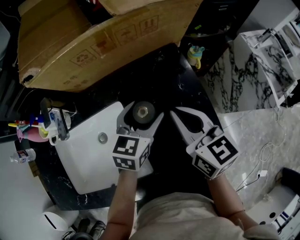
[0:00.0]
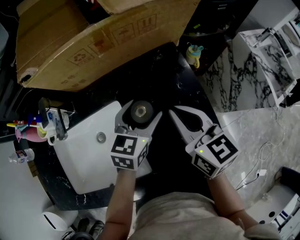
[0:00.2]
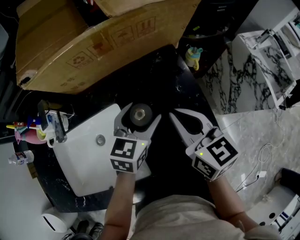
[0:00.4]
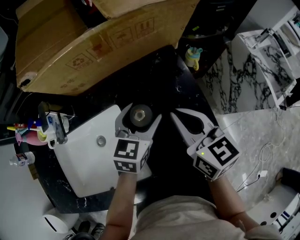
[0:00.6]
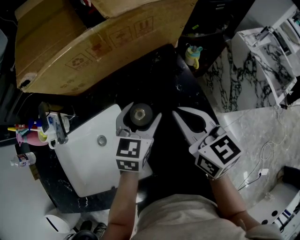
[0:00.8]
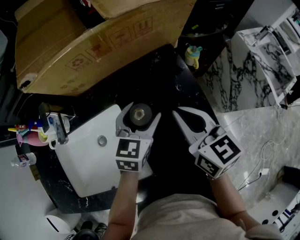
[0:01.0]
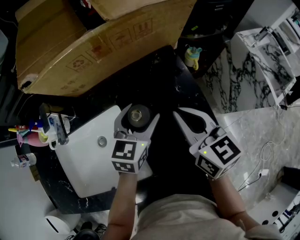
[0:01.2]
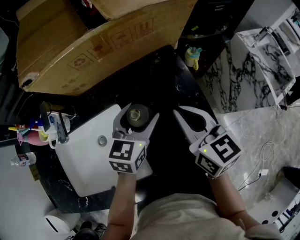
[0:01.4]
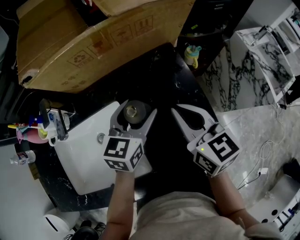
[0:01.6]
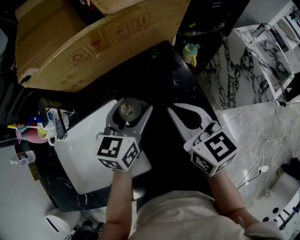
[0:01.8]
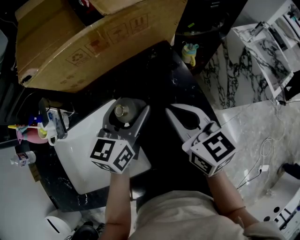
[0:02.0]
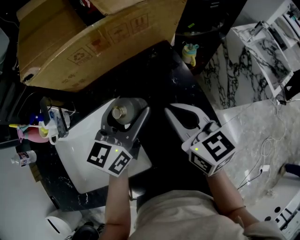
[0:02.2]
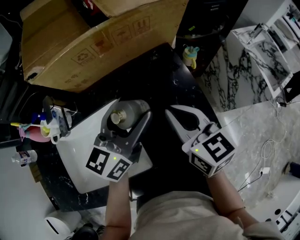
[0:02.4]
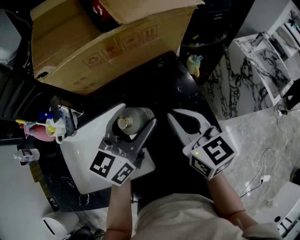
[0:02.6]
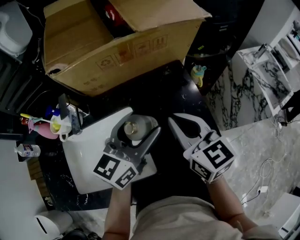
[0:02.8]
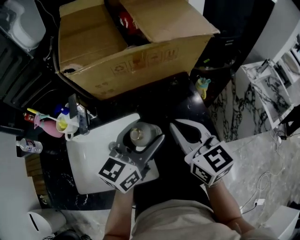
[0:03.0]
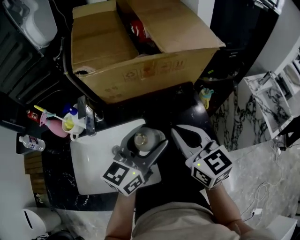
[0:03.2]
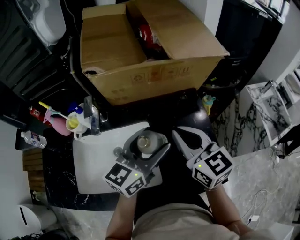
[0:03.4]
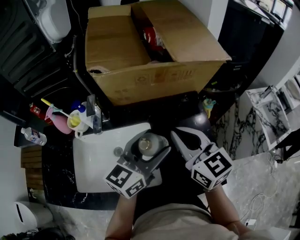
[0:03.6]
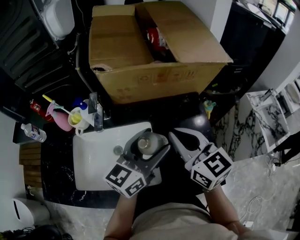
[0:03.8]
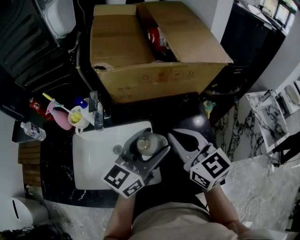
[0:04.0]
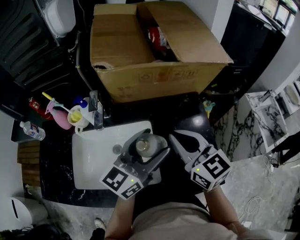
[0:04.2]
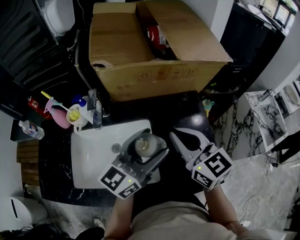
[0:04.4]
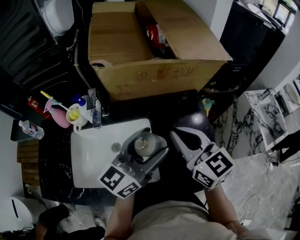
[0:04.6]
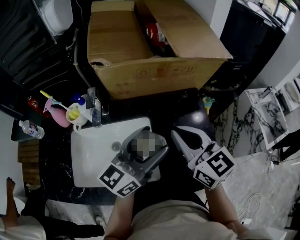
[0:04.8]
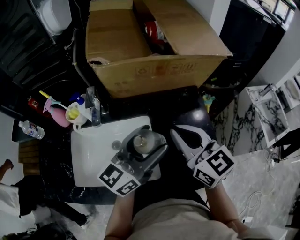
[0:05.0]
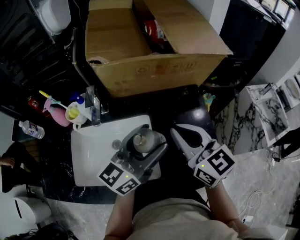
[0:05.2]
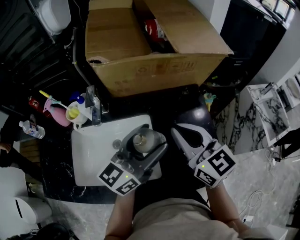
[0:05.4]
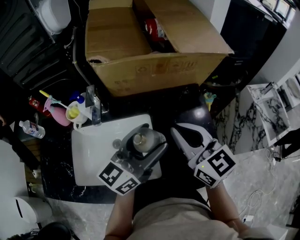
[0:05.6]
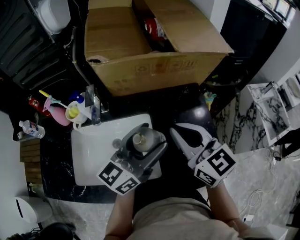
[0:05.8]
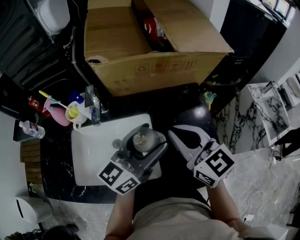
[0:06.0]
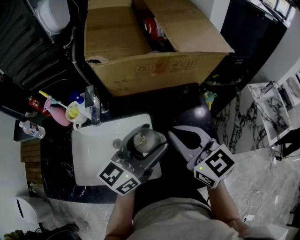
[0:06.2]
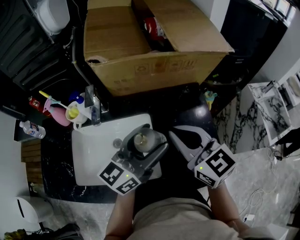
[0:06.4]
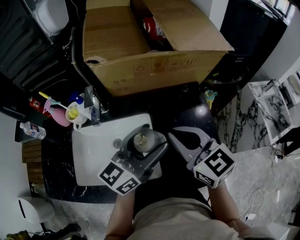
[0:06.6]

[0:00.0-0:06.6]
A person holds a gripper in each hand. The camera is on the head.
0.0 to 1.6 s: The grippers make only small movements.
1.6 to 3.2 s: The right gripper moves upward and to the left, some 10 cm; the left gripper travels upward and backward by approximately 15 cm.
3.2 to 5.0 s: The left gripper changes place by some 5 cm.
5.0 to 6.6 s: The grippers stay close to where they were, moving slightly.

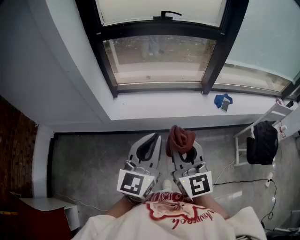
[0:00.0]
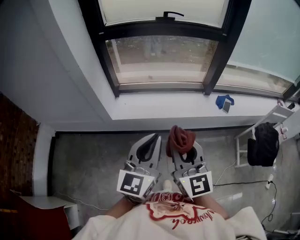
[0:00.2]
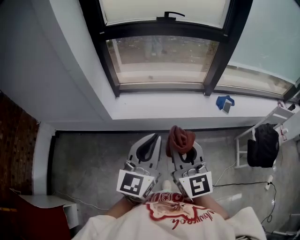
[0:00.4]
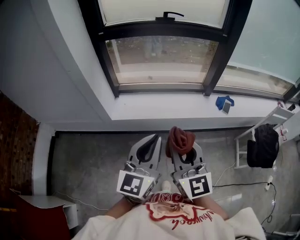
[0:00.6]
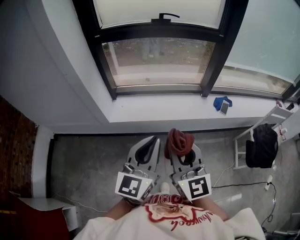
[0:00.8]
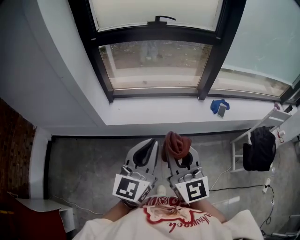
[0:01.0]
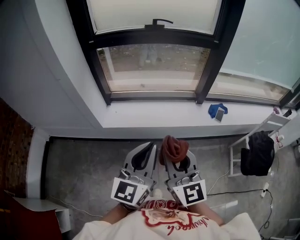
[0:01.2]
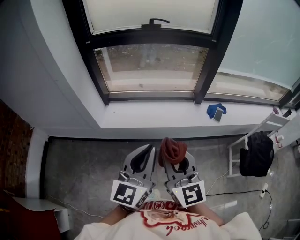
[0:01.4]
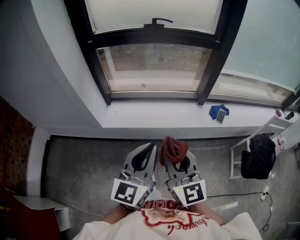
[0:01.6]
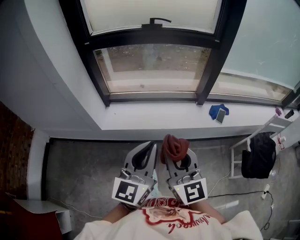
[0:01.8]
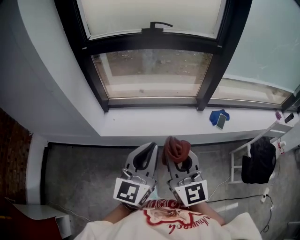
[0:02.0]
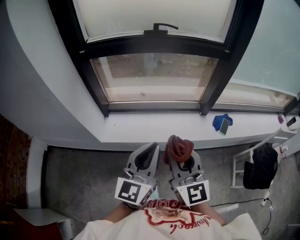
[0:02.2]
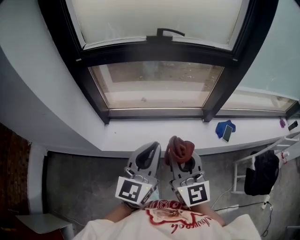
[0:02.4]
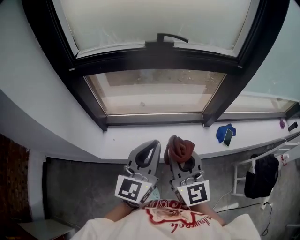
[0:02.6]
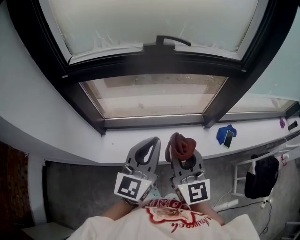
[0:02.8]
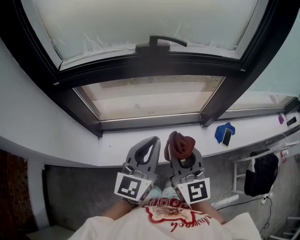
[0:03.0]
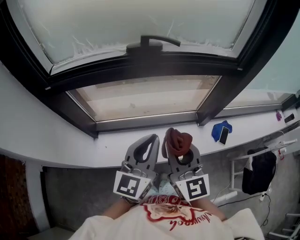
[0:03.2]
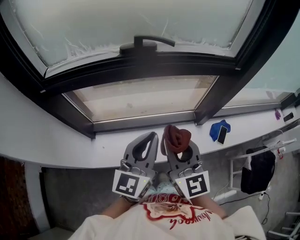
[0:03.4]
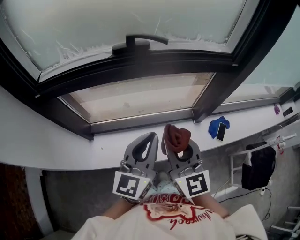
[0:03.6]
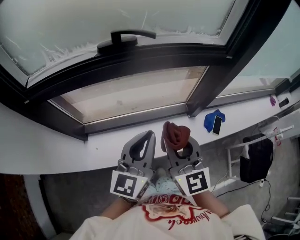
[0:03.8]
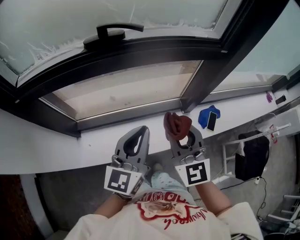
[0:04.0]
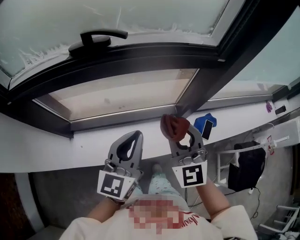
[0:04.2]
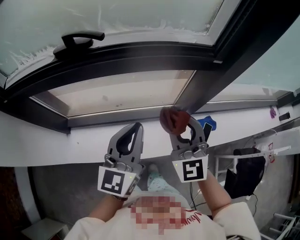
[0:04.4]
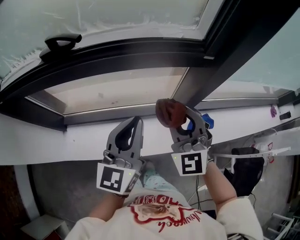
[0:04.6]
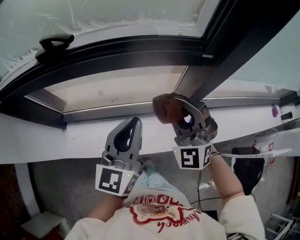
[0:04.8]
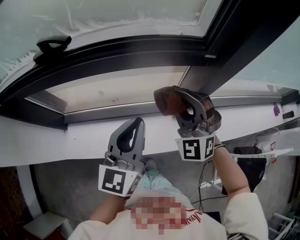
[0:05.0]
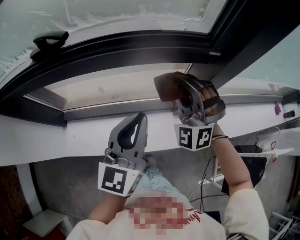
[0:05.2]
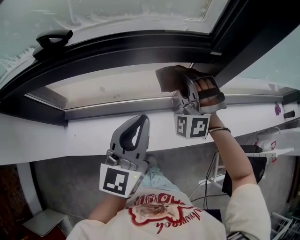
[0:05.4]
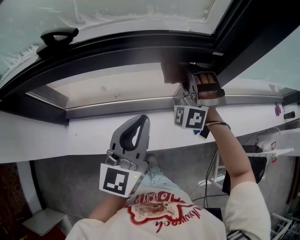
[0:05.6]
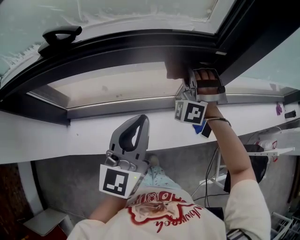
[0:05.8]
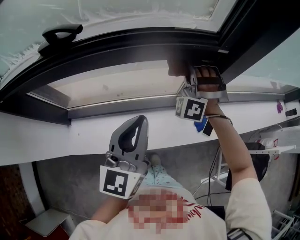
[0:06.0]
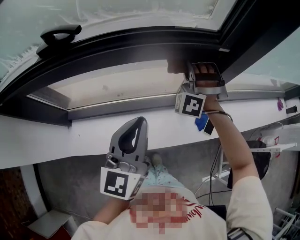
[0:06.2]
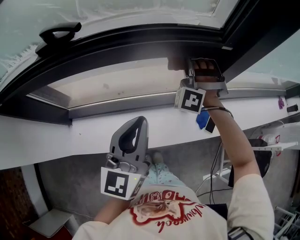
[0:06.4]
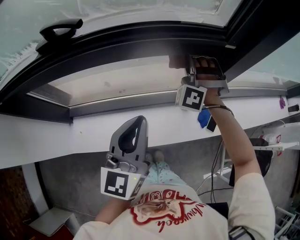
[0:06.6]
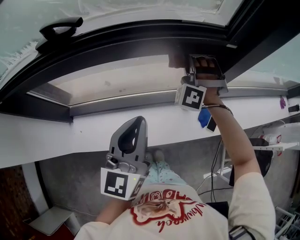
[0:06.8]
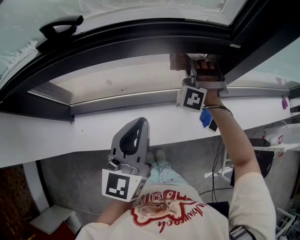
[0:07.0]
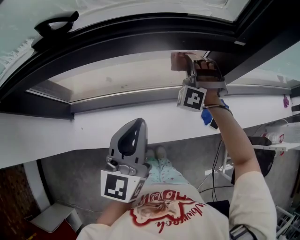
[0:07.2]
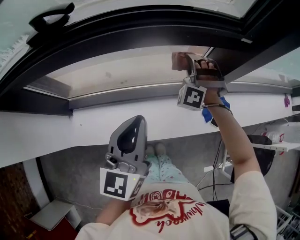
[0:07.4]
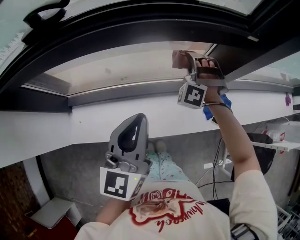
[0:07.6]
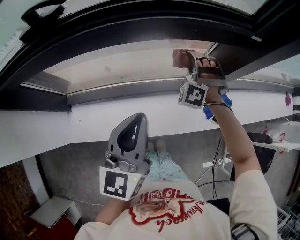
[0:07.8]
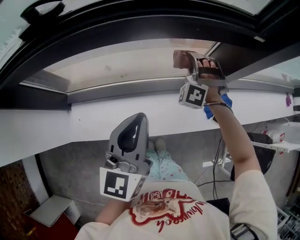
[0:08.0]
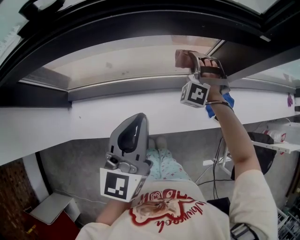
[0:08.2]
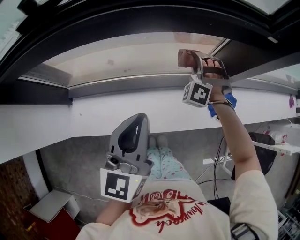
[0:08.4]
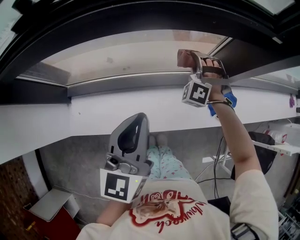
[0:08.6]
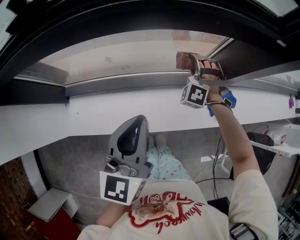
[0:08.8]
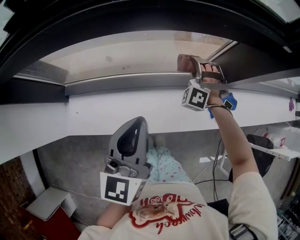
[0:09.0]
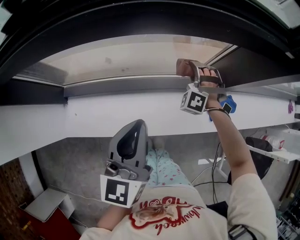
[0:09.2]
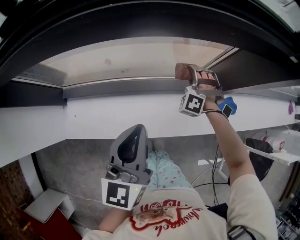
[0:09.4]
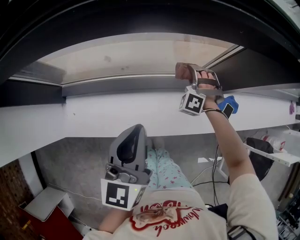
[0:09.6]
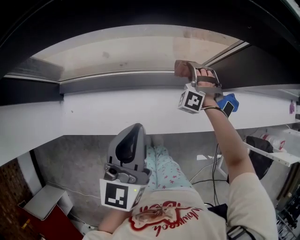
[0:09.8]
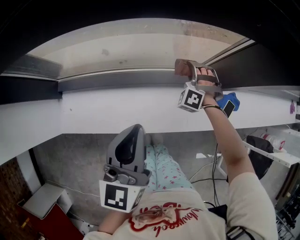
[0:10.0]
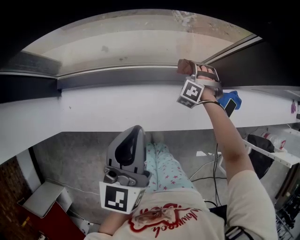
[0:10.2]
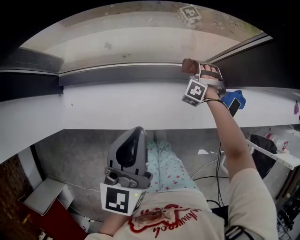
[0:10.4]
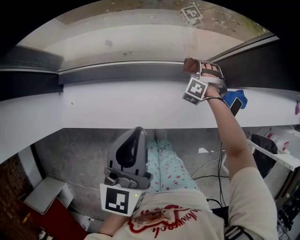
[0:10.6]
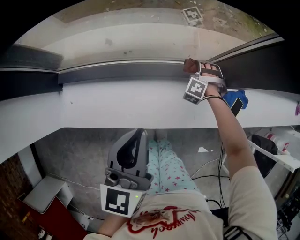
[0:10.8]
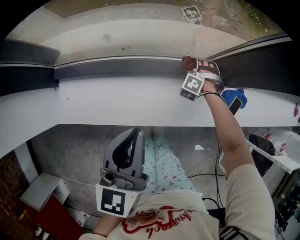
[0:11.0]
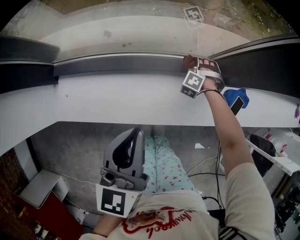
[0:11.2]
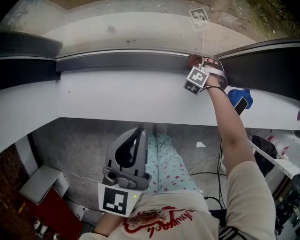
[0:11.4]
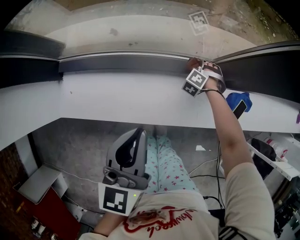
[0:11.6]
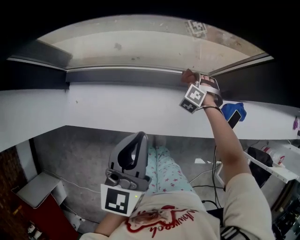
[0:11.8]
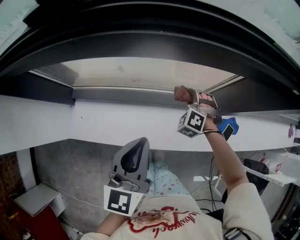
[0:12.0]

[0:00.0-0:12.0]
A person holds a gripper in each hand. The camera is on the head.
0.0 to 1.6 s: Both grippers travel together to the right, roughly 5 cm.
1.6 to 3.0 s: Both grippers travel together forward, approximately 40 cm.
3.0 to 4.4 s: Both grippers move to the right and forward, roughly 25 cm. The right gripper changes its angle by roughly 30 degrees.
4.4 to 6.0 s: The right gripper moves forward, some 20 cm, and twists some 60 degrees counterclockwise, seen from behind.
6.0 to 7.6 s: The right gripper travels downward by approximately 15 cm, while the left gripper is displaced downward by roughly 5 cm.
7.6 to 9.0 s: The left gripper ends up roughly 5 cm from where it was. Meanwhile the right gripper heads downward, covering approximately 10 cm.
9.0 to 10.4 s: The right gripper heads downward, covering roughly 15 cm. The left gripper heads downward, covering some 5 cm.
10.4 to 12.0 s: The left gripper travels upward by roughly 5 cm, while the right gripper is displaced upward and to the left by about 15 cm.

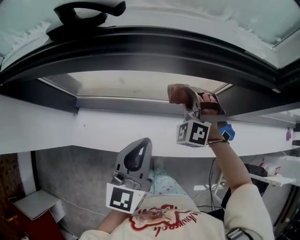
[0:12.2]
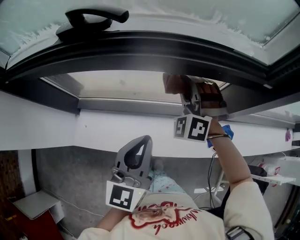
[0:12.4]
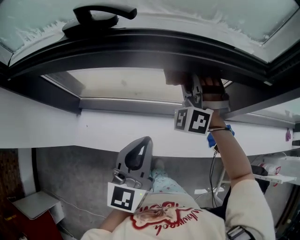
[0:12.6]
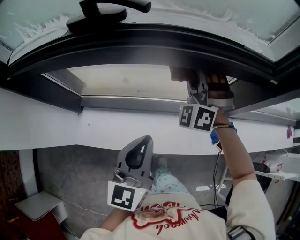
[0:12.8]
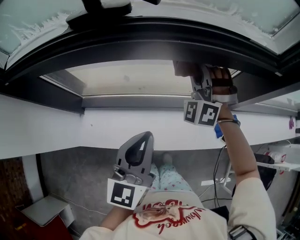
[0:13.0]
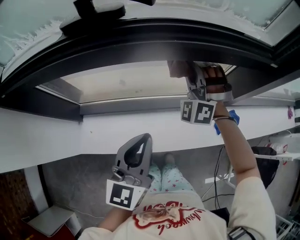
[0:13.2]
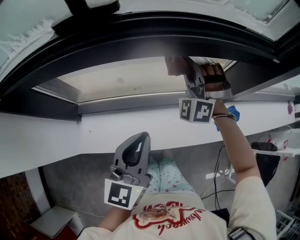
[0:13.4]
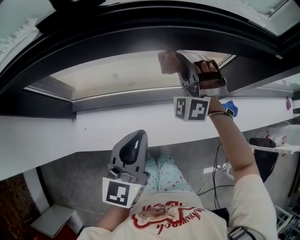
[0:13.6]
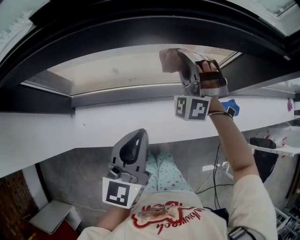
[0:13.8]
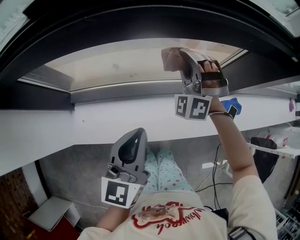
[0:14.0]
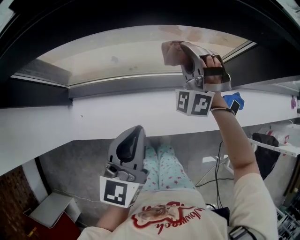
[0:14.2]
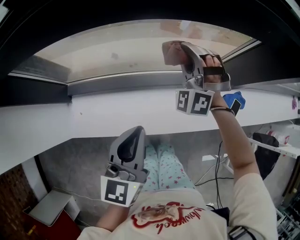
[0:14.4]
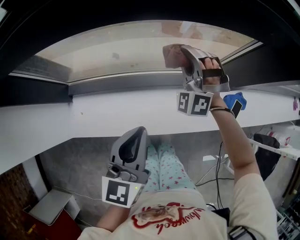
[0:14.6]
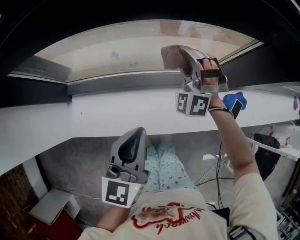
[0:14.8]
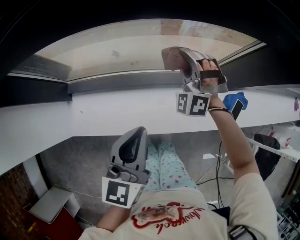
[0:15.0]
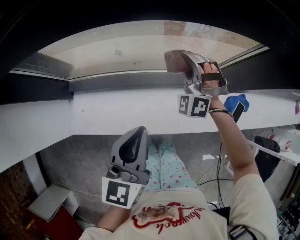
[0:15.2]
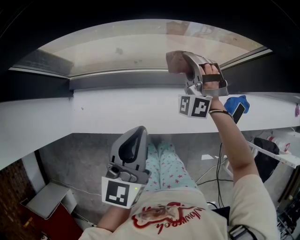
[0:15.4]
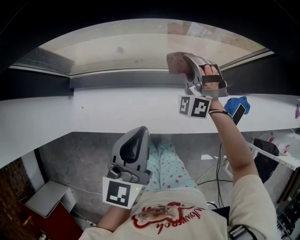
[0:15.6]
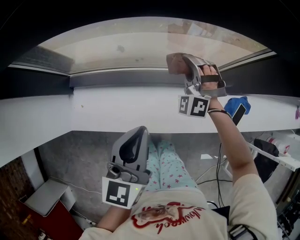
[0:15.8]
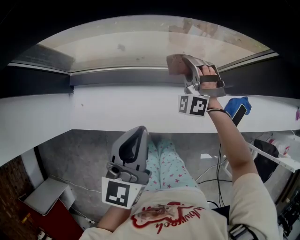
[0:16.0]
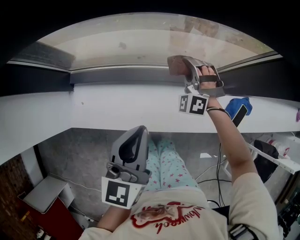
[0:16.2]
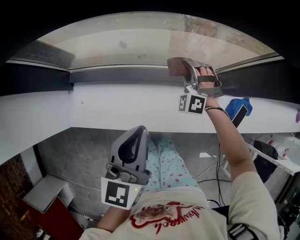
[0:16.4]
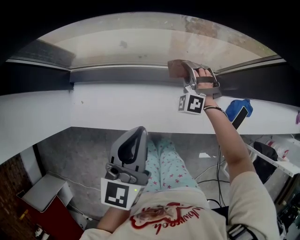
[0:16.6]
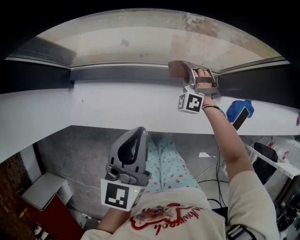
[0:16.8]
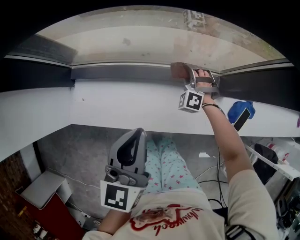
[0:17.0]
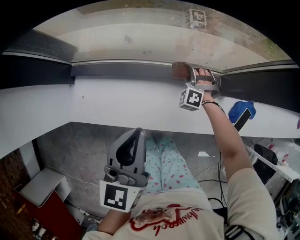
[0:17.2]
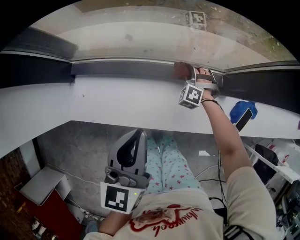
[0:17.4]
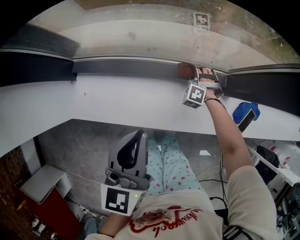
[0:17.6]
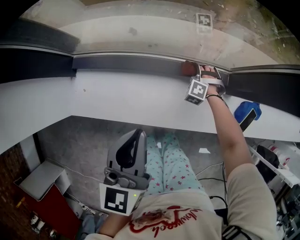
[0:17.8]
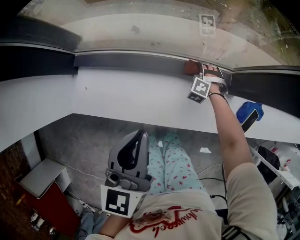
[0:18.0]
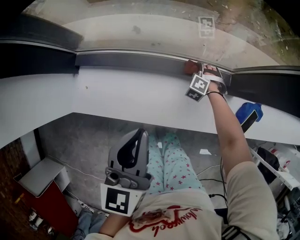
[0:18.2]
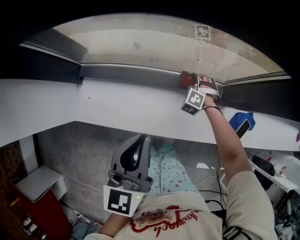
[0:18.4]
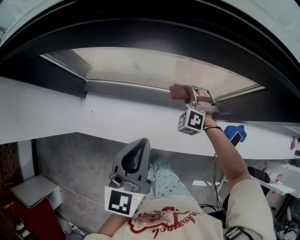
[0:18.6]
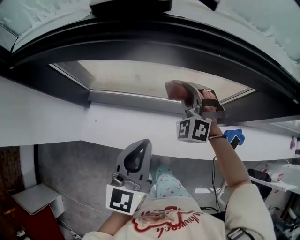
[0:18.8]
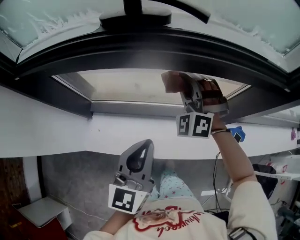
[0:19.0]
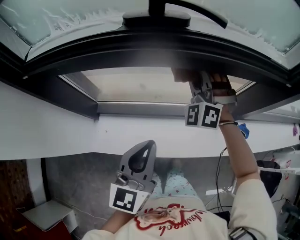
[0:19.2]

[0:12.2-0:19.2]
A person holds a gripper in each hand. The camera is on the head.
12.2 to 13.6 s: The left gripper ends up roughly 5 cm from where it was; the right gripper travels upward by about 5 cm, and rotates some 20 degrees.
13.6 to 15.0 s: The right gripper is displaced downward by roughly 15 cm; the left gripper shifts about 5 cm downward.
15.0 to 16.4 s: The right gripper moves downward, roughly 10 cm.
16.4 to 17.8 s: The right gripper heads downward, covering about 20 cm, and swivels approximately 20 degrees.
17.8 to 19.2 s: The left gripper moves upward, roughly 15 cm, and swivels roughly 20 degrees. Meanwhile the right gripper goes roughly 50 cm upward, and tips its fingers upward by approximately 40 degrees.
